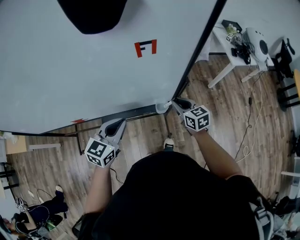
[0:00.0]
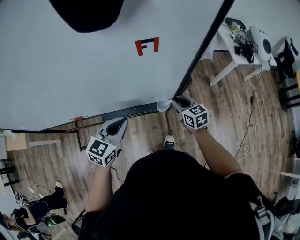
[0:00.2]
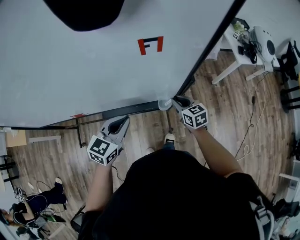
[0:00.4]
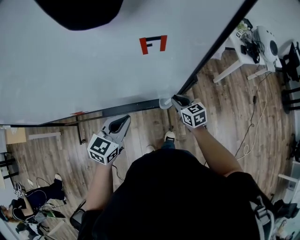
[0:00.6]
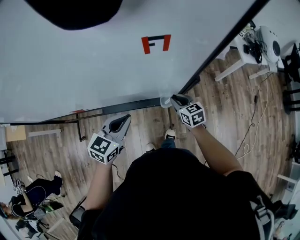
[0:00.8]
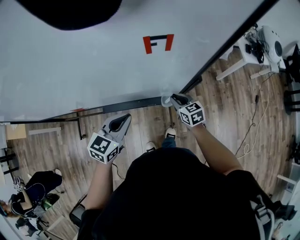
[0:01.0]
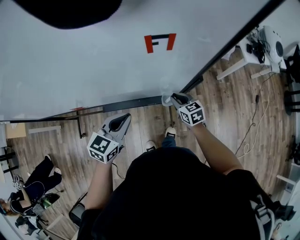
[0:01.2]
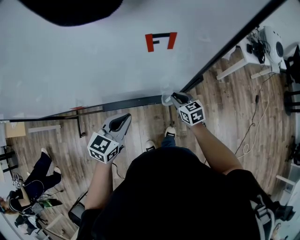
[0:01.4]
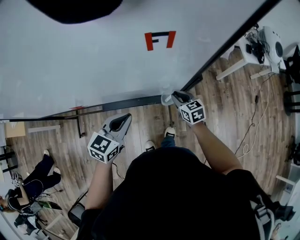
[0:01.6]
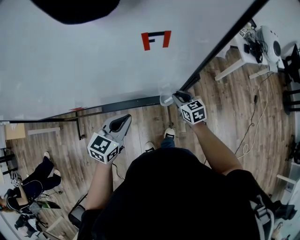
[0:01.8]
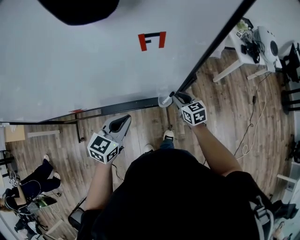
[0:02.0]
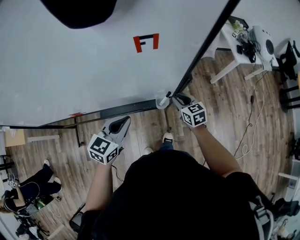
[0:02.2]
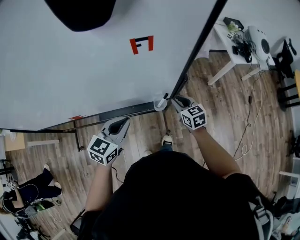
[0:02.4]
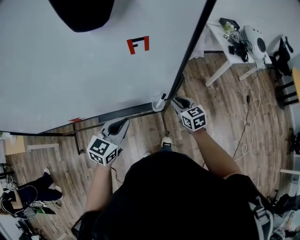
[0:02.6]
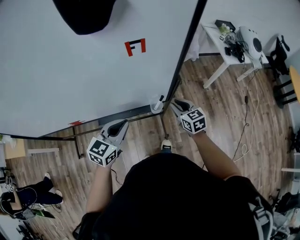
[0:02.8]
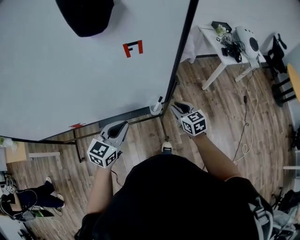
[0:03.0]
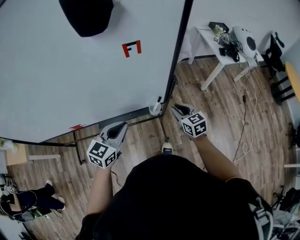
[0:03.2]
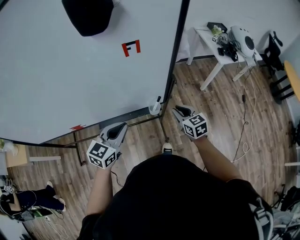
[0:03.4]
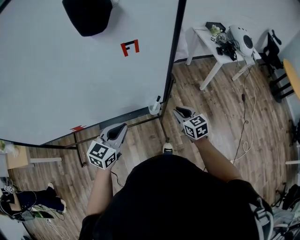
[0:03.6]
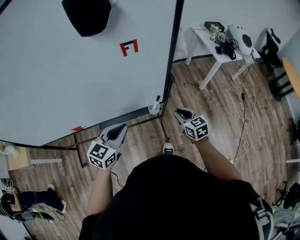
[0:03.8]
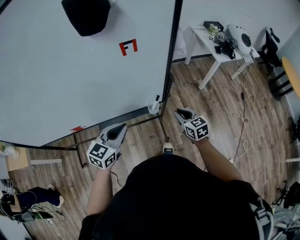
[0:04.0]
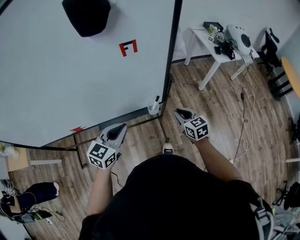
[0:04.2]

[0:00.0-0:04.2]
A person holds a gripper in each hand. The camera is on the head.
0:00.0 to 0:01.4: The right gripper shifts approximately 10 cm downward.
0:01.4 to 0:02.8: The right gripper moves upward and to the right, roughly 10 cm. Meanwhile the left gripper ends up roughly 5 cm from where it was.
0:02.8 to 0:04.2: The right gripper moves backward, approximately 5 cm.

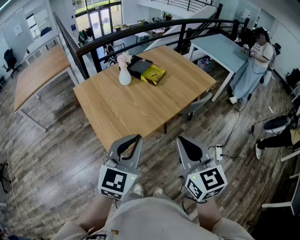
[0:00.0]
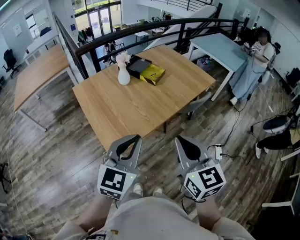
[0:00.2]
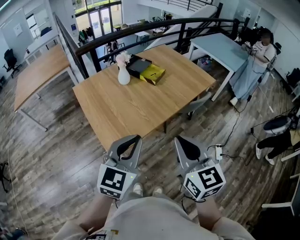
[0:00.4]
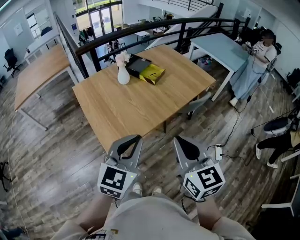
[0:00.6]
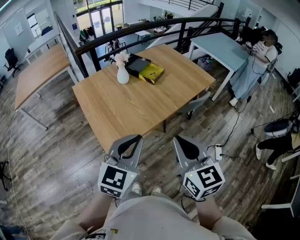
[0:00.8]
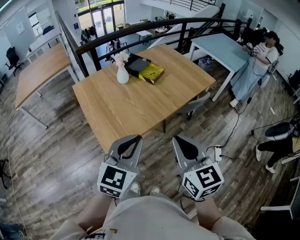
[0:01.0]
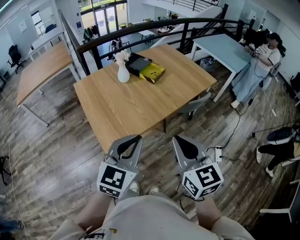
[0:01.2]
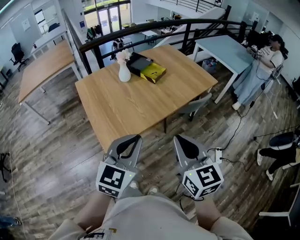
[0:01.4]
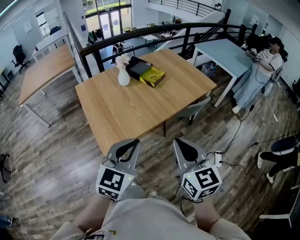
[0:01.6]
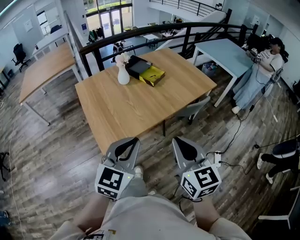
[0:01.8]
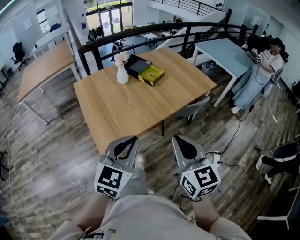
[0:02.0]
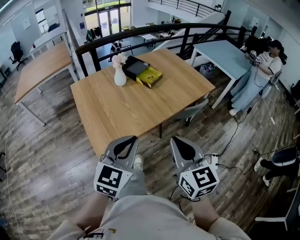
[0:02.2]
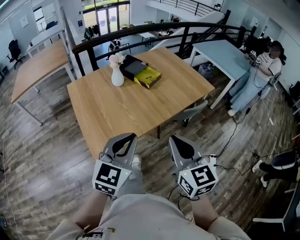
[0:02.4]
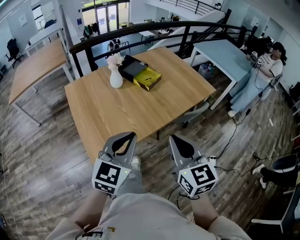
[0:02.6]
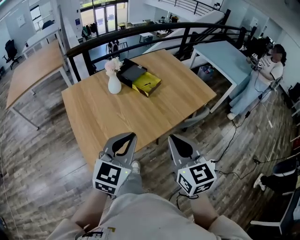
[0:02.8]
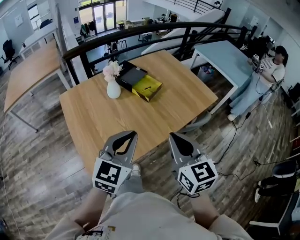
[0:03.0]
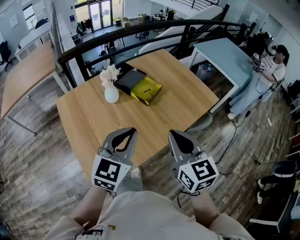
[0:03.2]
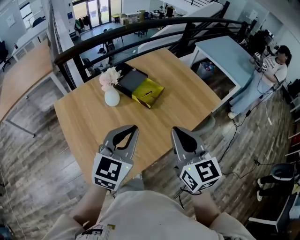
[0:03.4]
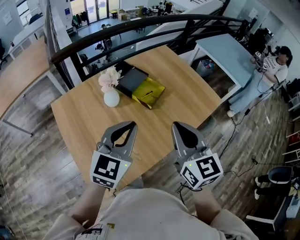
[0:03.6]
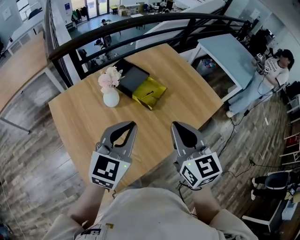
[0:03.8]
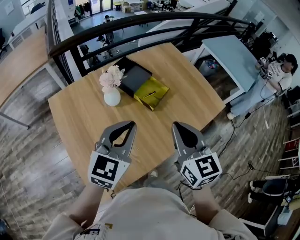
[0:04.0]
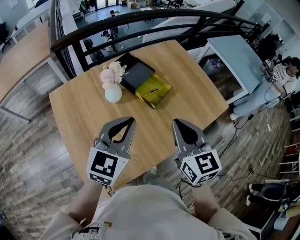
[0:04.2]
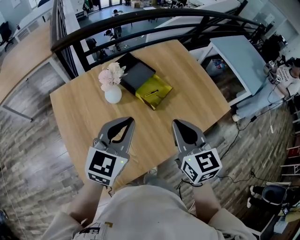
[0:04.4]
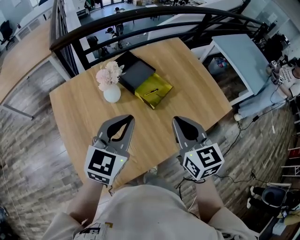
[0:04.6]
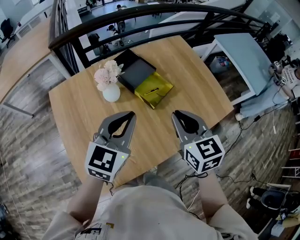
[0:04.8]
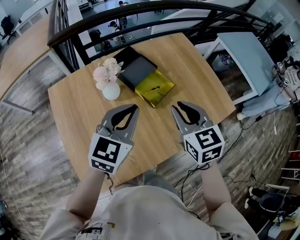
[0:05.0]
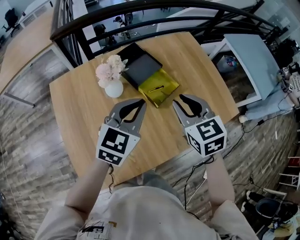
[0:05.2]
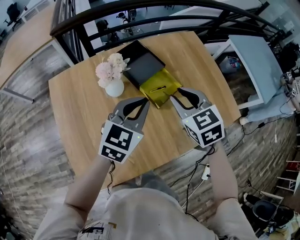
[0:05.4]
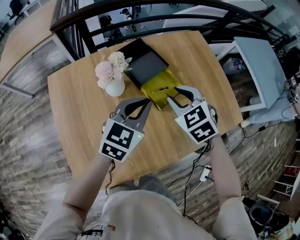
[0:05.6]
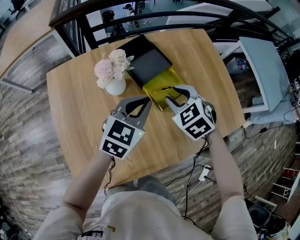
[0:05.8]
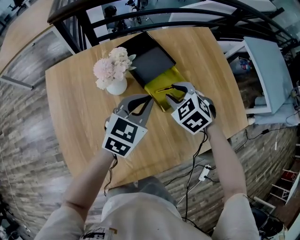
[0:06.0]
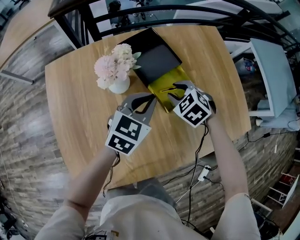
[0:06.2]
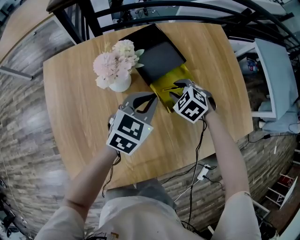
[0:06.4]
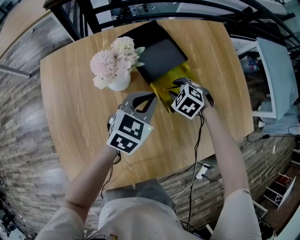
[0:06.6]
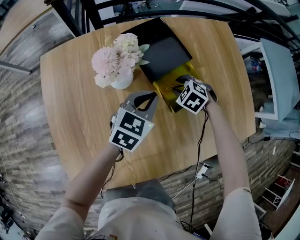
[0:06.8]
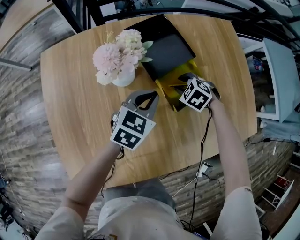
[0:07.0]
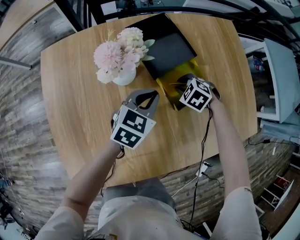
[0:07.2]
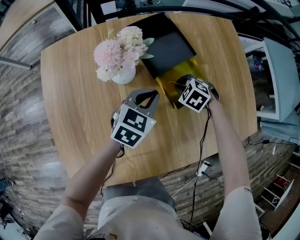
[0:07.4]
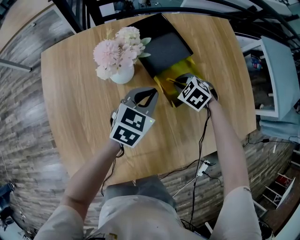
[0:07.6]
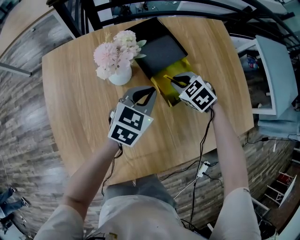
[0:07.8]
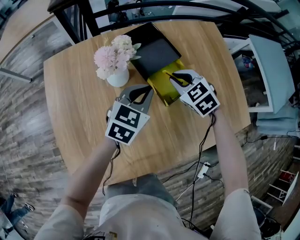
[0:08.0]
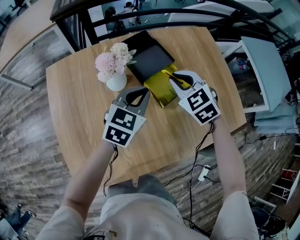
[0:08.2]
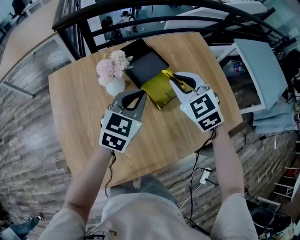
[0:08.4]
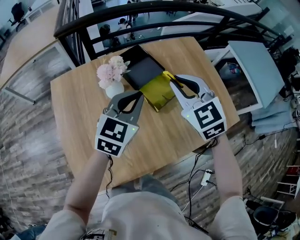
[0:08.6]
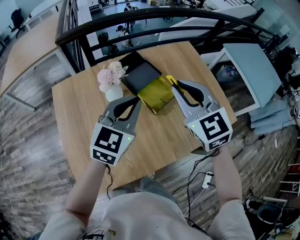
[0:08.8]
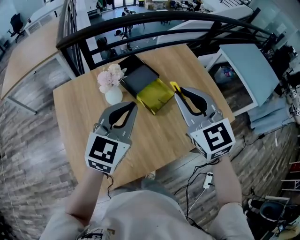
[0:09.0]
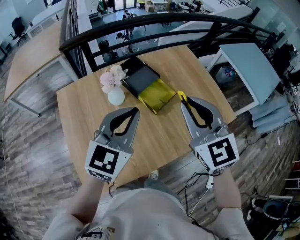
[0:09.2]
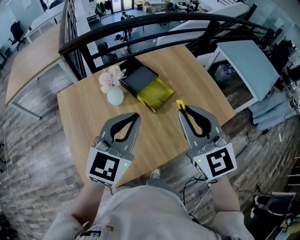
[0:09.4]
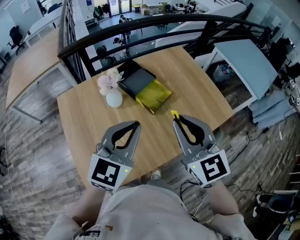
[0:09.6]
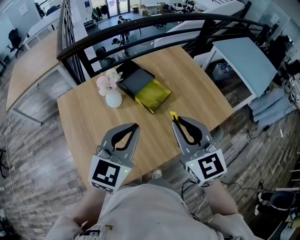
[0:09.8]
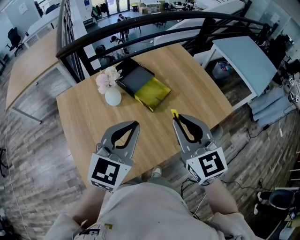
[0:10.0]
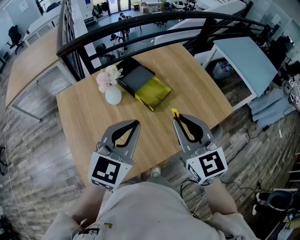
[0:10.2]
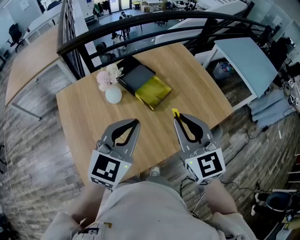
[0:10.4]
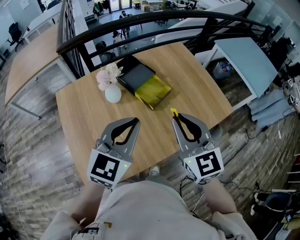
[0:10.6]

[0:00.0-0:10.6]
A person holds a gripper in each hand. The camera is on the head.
0:00.0 to 0:01.6: Both grippers travel together to the right, about 10 cm.
0:01.6 to 0:03.0: The grippers both shift forward by about 25 cm.
0:03.0 to 0:04.6: The two grippers go approximately 25 cm forward.
0:04.6 to 0:06.0: The two grippers go some 25 cm forward and downward. The right gripper tilts its fingers roughly 30 degrees downward, and opens.
0:06.0 to 0:07.6: The left gripper travels downward by about 10 cm, while the right gripper shifts about 15 cm downward, and closes.
0:07.6 to 0:09.0: The right gripper goes approximately 50 cm upward and backward, and tilts its fingers some 50 degrees upward; the left gripper goes some 30 cm upward and backward, and swivels roughly 20 degrees.
0:09.0 to 0:10.6: Both grippers move backward, approximately 10 cm.

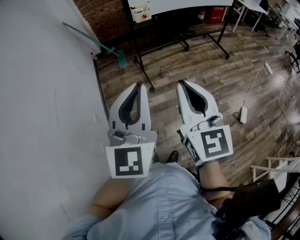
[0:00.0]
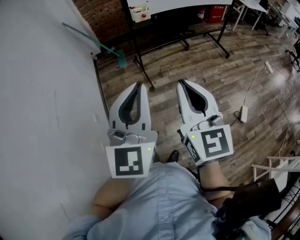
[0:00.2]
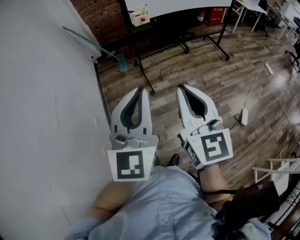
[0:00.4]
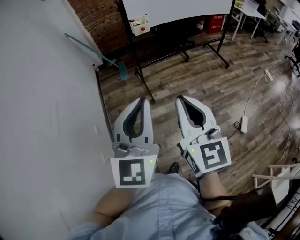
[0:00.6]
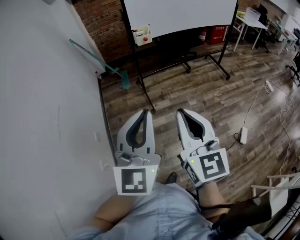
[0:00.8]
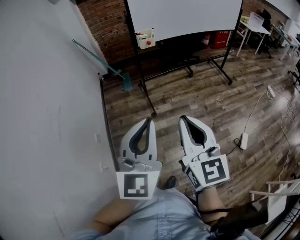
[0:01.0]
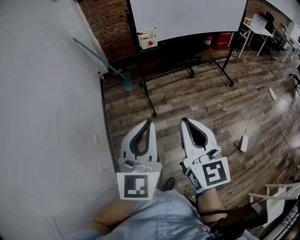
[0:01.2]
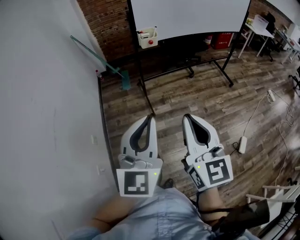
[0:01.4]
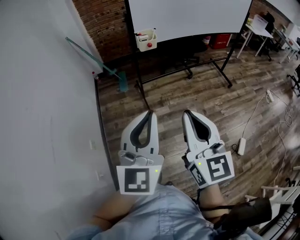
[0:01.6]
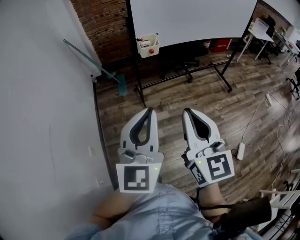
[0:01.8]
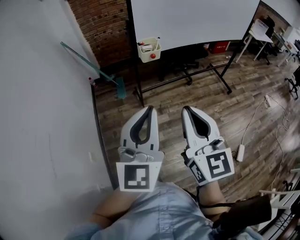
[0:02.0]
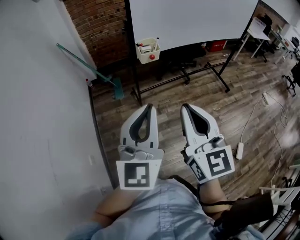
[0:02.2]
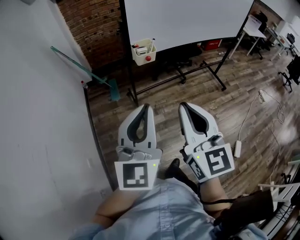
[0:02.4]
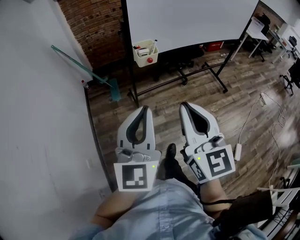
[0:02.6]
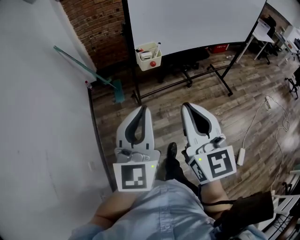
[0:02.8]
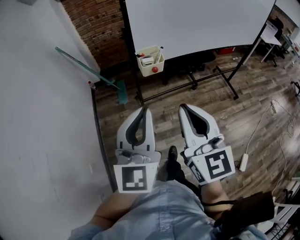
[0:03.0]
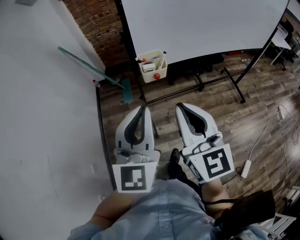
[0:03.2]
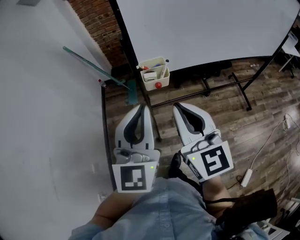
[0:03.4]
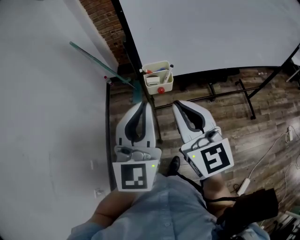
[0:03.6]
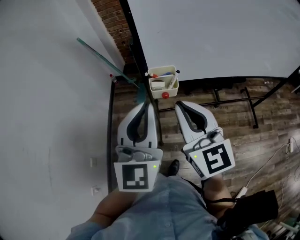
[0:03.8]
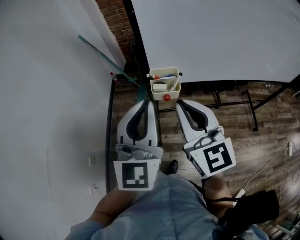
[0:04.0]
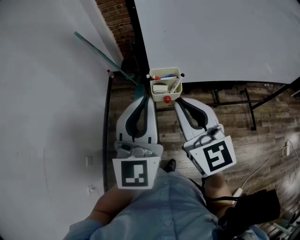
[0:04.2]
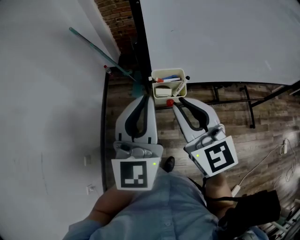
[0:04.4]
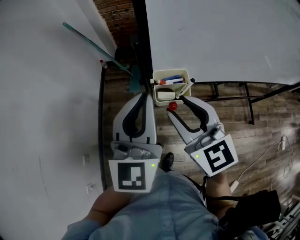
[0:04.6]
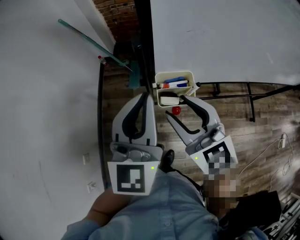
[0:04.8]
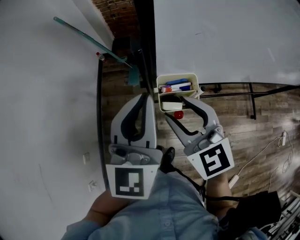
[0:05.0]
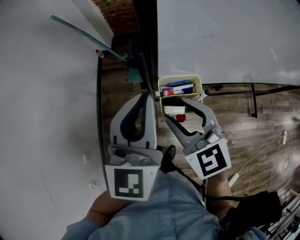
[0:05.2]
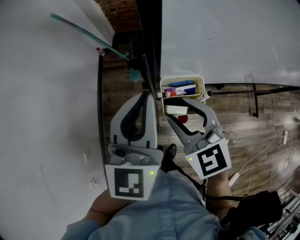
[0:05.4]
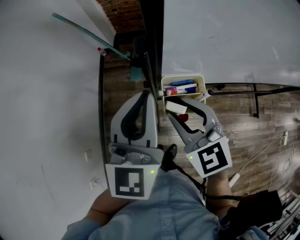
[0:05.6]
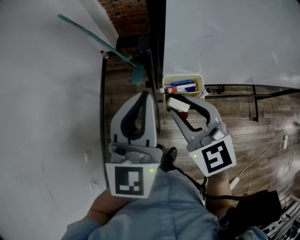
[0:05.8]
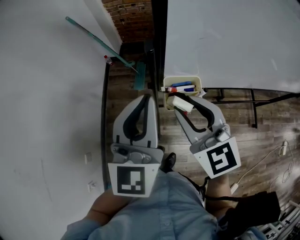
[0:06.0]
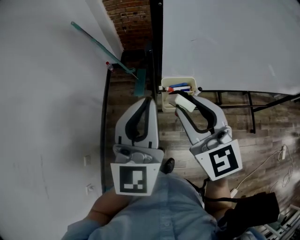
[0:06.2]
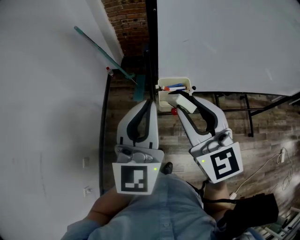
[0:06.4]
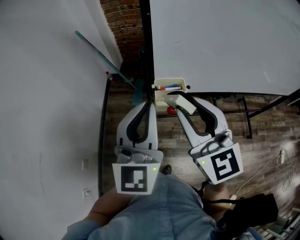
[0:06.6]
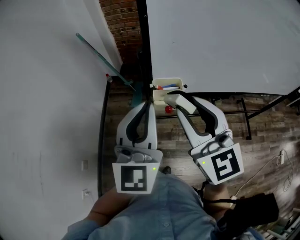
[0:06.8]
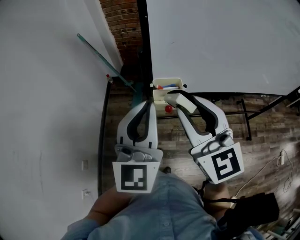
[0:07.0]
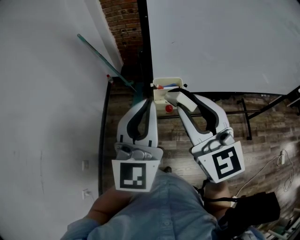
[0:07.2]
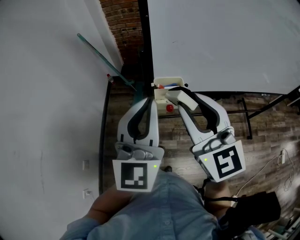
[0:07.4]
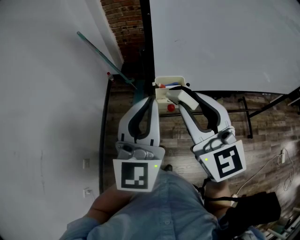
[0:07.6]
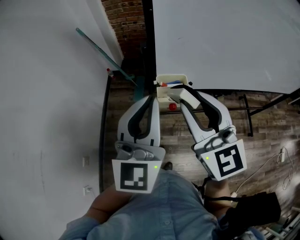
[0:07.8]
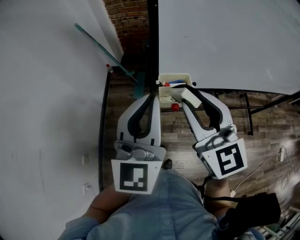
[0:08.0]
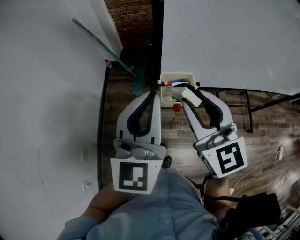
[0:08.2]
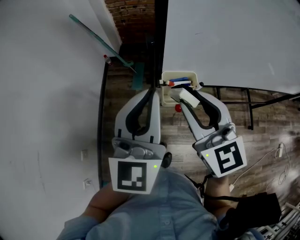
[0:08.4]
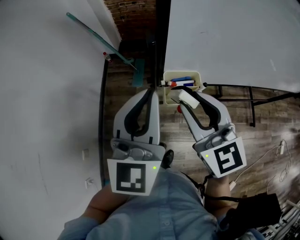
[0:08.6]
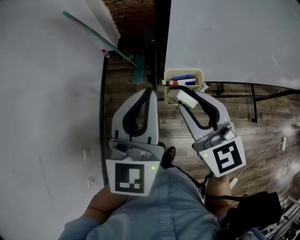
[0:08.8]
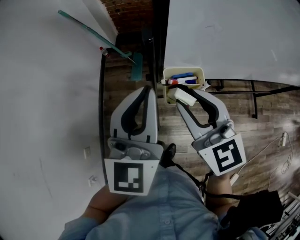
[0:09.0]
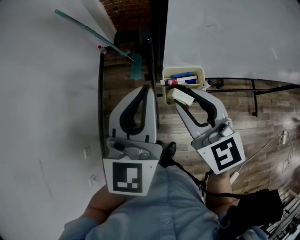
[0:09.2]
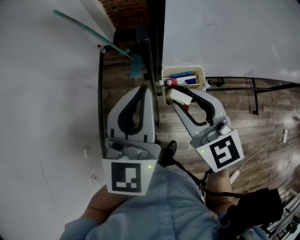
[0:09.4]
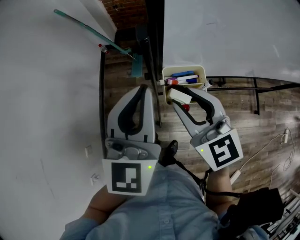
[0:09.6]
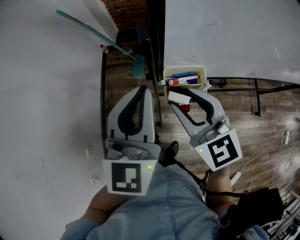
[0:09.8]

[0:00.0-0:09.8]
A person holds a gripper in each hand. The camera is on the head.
0:00.0 to 0:01.4: Both grippers move forward, some 5 cm.
0:01.4 to 0:02.8: The grippers both shift forward by approximately 25 cm.
0:02.8 to 0:04.2: Both grippers travel together forward, some 25 cm. The right gripper swivels roughly 30 degrees.
0:04.2 to 0:05.6: The left gripper shifts about 15 cm forward and downward; the right gripper goes roughly 15 cm downward and forward, rotates roughly 30 degrees, and opens up.
0:05.6 to 0:07.0: The right gripper is displaced upward and backward by approximately 20 cm, and rotates some 30 degrees, while the left gripper moves backward and upward, about 15 cm.
0:07.0 to 0:08.4: The right gripper moves forward and downward, roughly 10 cm. Meanwhile the left gripper shifts about 5 cm forward.
0:08.4 to 0:09.8: The right gripper shifts some 5 cm downward. The left gripper changes place by some 5 cm.
